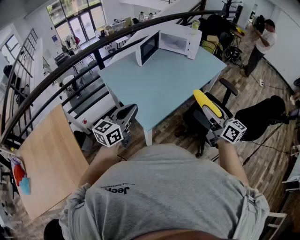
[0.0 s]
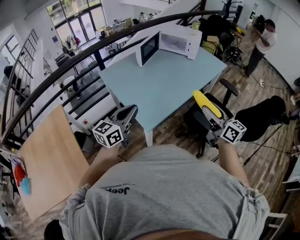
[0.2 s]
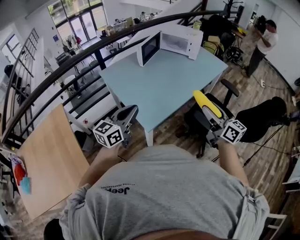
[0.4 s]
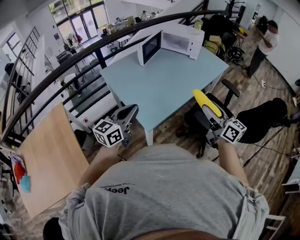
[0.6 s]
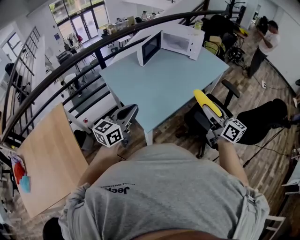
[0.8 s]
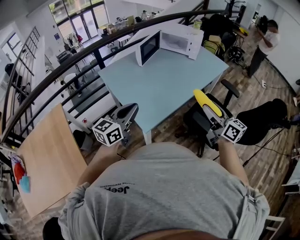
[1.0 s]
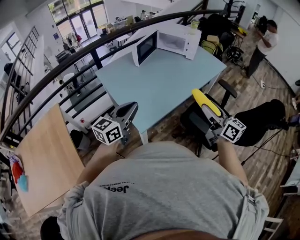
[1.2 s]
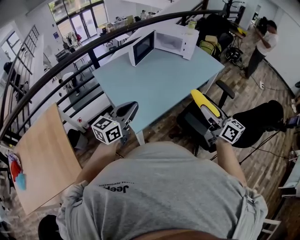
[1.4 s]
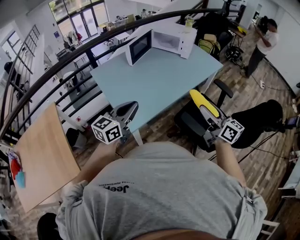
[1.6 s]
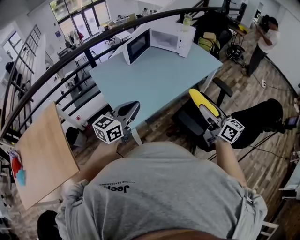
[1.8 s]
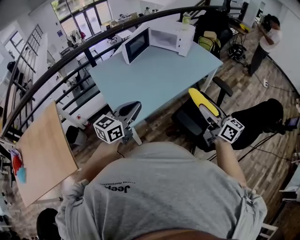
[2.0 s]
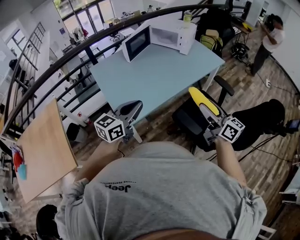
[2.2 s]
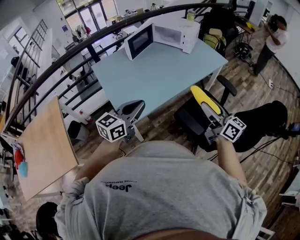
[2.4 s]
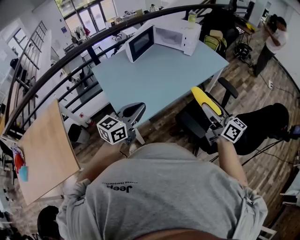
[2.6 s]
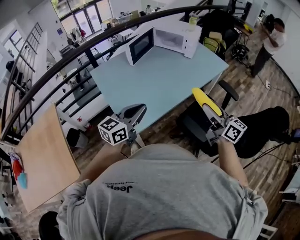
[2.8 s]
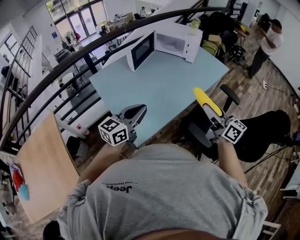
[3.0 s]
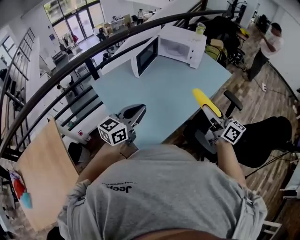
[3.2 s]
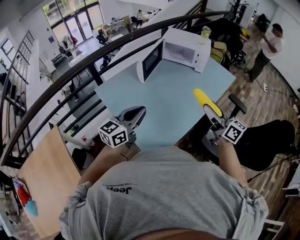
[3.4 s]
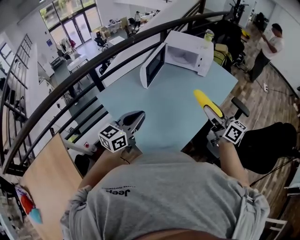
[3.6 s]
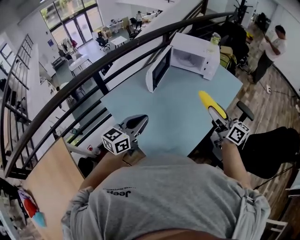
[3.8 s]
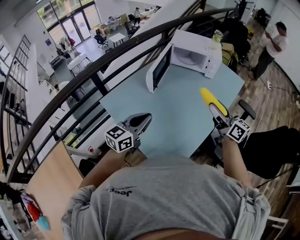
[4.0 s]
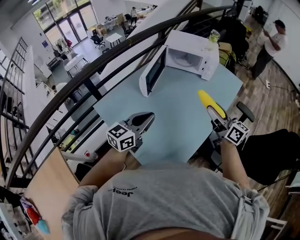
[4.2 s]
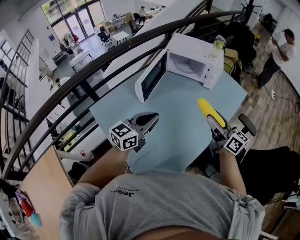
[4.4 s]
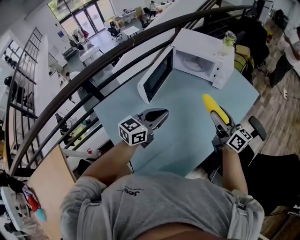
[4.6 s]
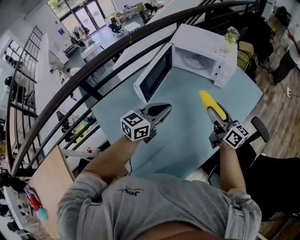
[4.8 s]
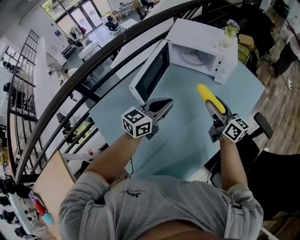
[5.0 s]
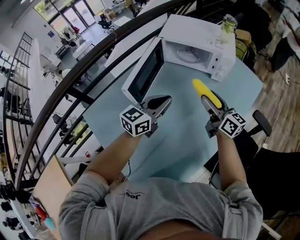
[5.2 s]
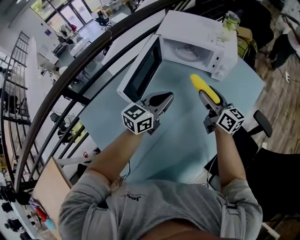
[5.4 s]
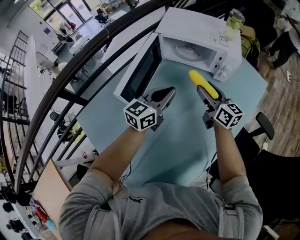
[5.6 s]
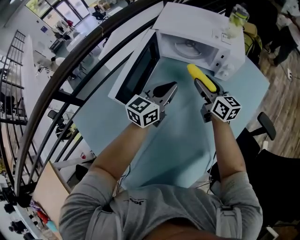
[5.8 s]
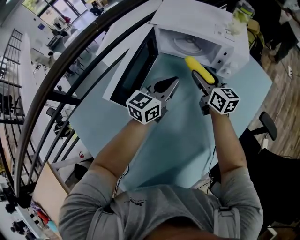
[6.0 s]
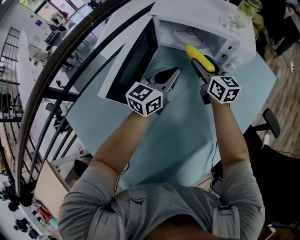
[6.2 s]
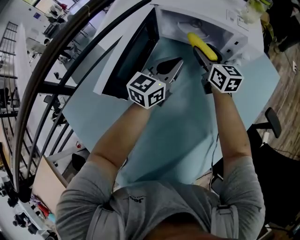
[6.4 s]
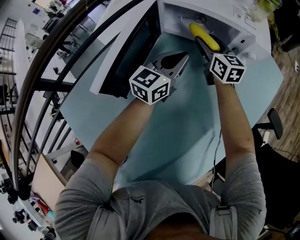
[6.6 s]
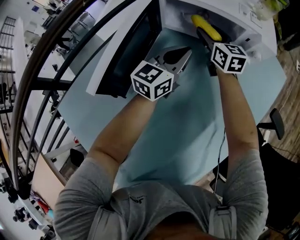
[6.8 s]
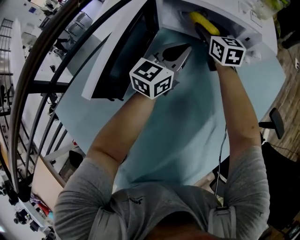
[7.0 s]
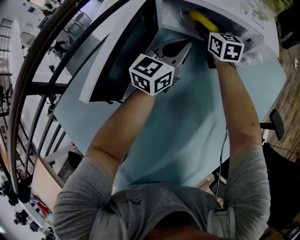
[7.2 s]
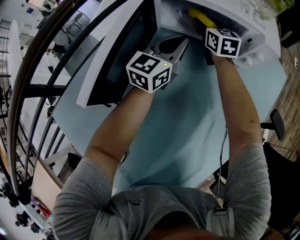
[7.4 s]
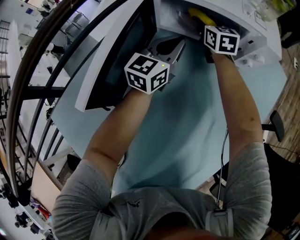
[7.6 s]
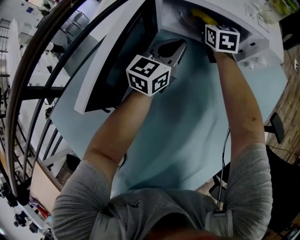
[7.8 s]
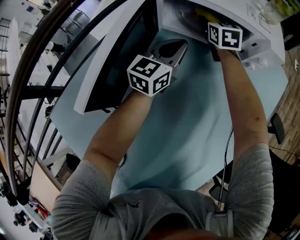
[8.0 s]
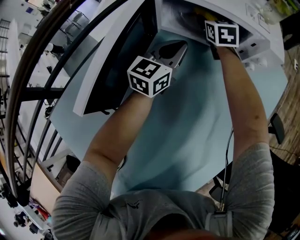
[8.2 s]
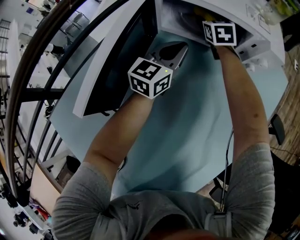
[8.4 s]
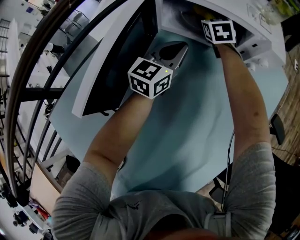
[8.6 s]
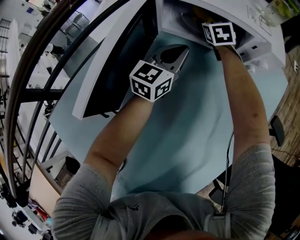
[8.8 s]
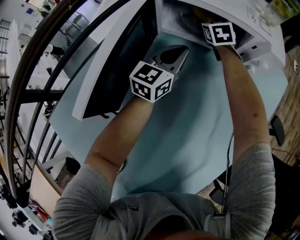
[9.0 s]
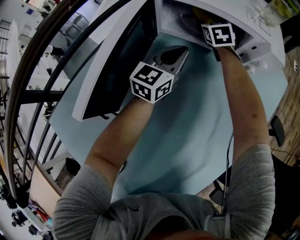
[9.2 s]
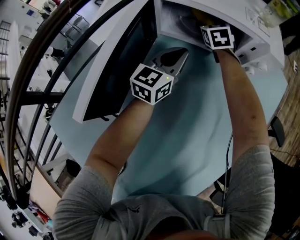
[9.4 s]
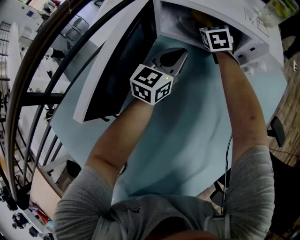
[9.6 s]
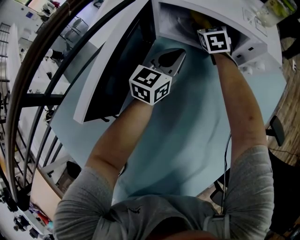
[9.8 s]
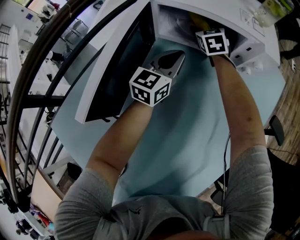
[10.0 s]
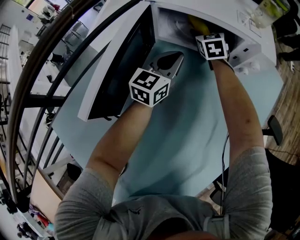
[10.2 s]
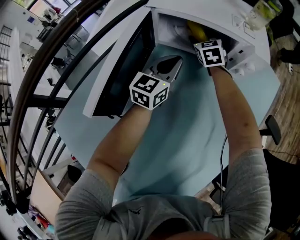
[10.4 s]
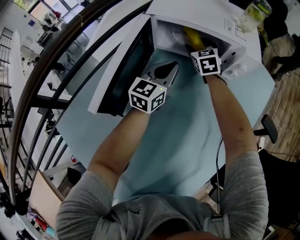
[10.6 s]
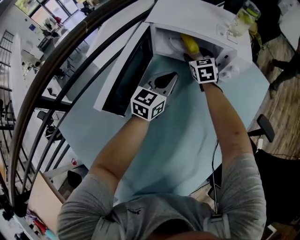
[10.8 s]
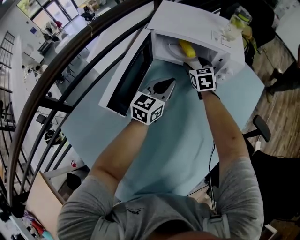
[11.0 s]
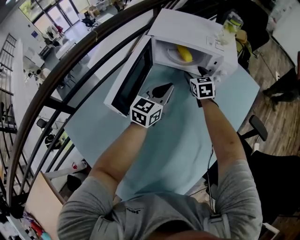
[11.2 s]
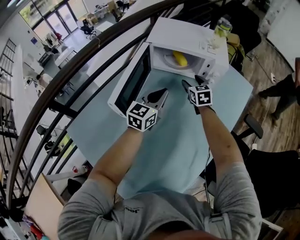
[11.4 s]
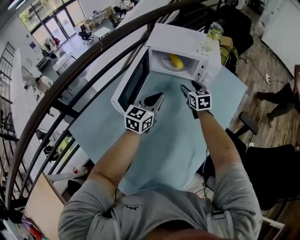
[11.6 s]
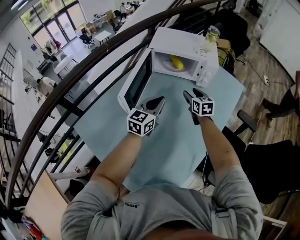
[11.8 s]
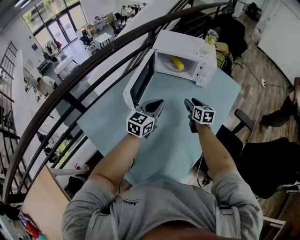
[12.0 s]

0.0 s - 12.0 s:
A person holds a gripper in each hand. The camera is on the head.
0.0 s - 1.6 s: The two grippers go some 10 cm to the right.
1.6 s - 3.0 s: The two grippers go about 10 cm forward. The left gripper travels to the right and back again, approximately 10 cm each way.
3.0 s - 4.4 s: The left gripper heads forward, covering about 25 cm; the right gripper moves forward and to the left, about 25 cm.
4.4 s - 6.0 s: Both grippers travel together forward and downward, about 40 cm.
6.0 s - 7.6 s: The right gripper moves forward, approximately 20 cm, and swivels some 20 degrees. The left gripper goes approximately 15 cm forward and downward.
7.6 s - 9.0 s: The right gripper rotates some 20 degrees.
9.0 s - 10.4 s: There are only small adjustments of the grippers.
10.4 s - 12.0 s: The left gripper travels backward and upward by roughly 30 cm. The right gripper moves backward, approximately 35 cm, and rotates some 30 degrees.

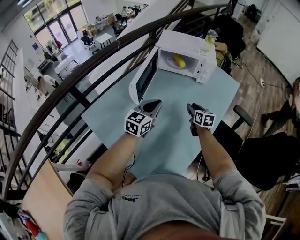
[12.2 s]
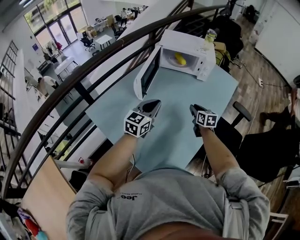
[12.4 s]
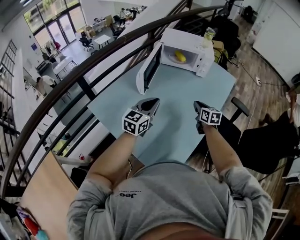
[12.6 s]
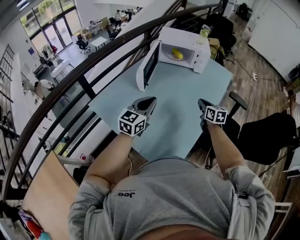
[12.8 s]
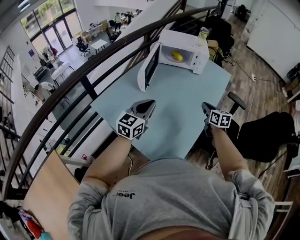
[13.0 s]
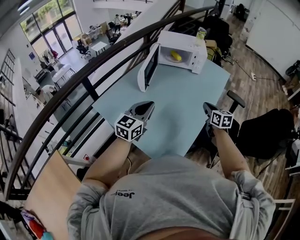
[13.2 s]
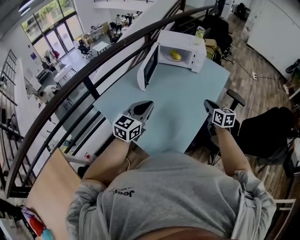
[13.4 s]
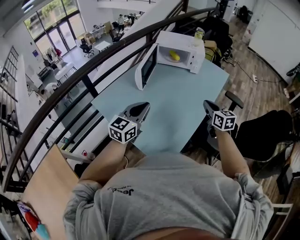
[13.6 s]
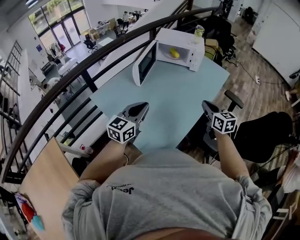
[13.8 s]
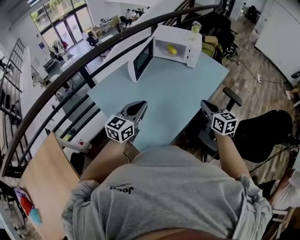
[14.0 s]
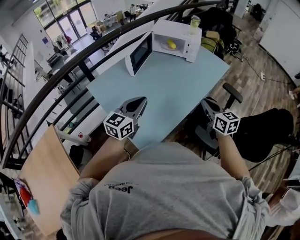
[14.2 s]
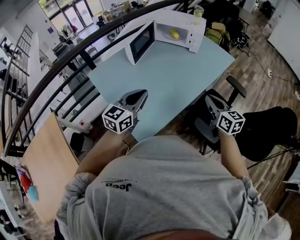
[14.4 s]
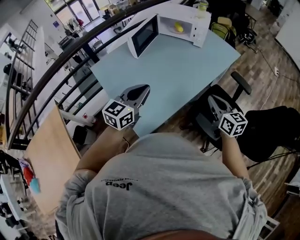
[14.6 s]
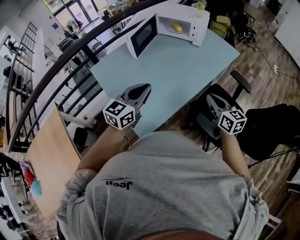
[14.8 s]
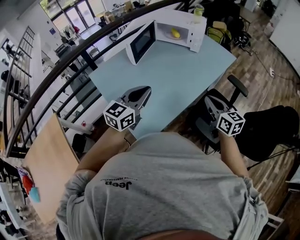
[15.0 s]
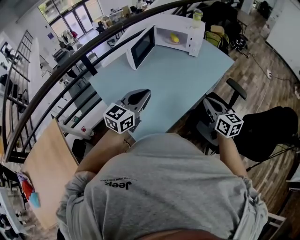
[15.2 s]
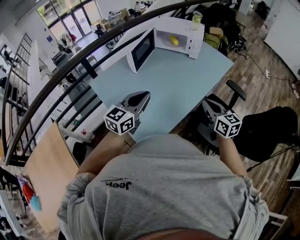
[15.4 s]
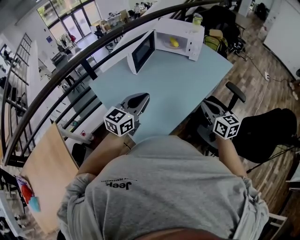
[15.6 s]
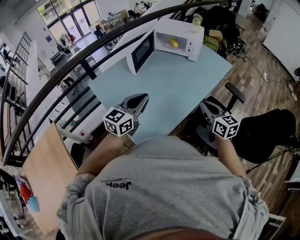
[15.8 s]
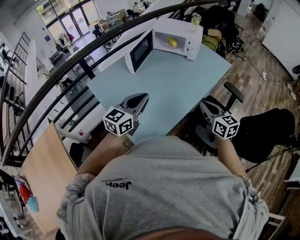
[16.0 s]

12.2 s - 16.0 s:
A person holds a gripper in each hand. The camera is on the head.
12.2 s - 13.4 s: Both grippers travel together backward and upward, some 25 cm. The right gripper closes up.
13.4 s - 14.8 s: The right gripper goes about 15 cm to the right and backward, and rotates about 20 degrees, while the left gripper travels to the right by some 15 cm.
14.8 s - 16.0 s: The right gripper ends up approximately 5 cm from where it was.

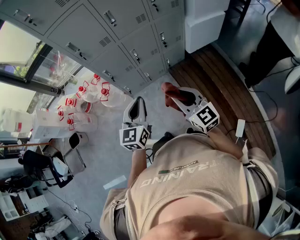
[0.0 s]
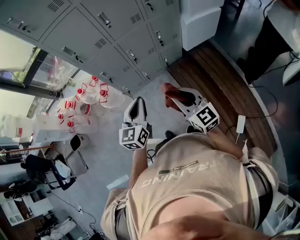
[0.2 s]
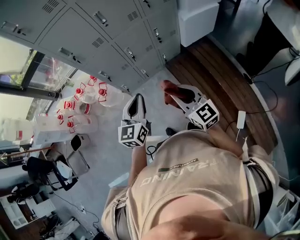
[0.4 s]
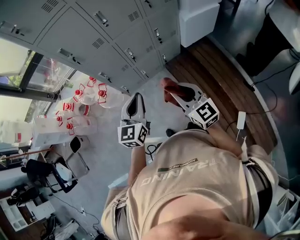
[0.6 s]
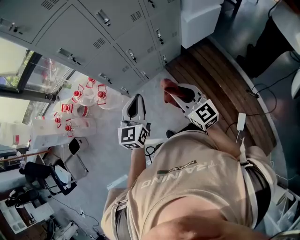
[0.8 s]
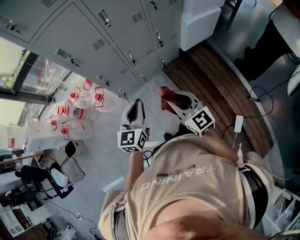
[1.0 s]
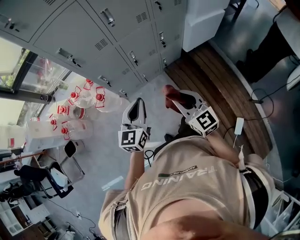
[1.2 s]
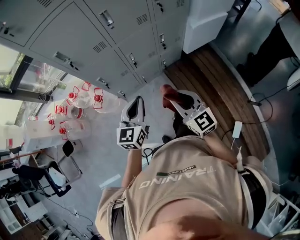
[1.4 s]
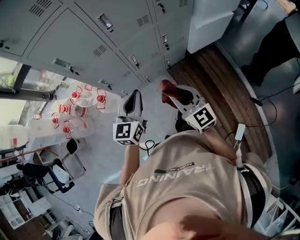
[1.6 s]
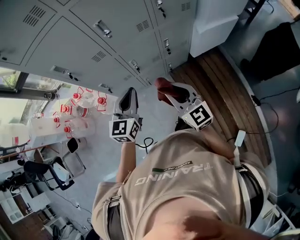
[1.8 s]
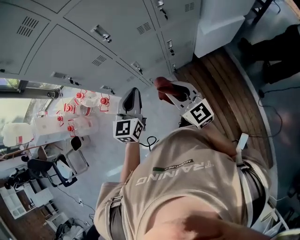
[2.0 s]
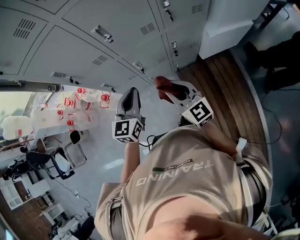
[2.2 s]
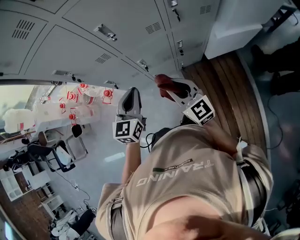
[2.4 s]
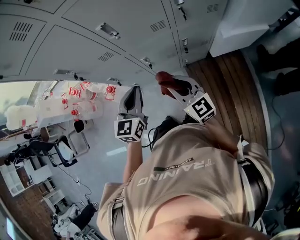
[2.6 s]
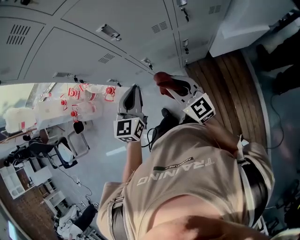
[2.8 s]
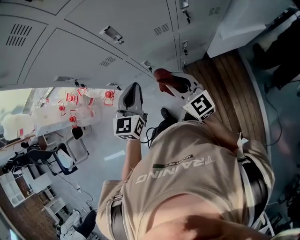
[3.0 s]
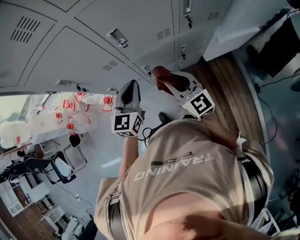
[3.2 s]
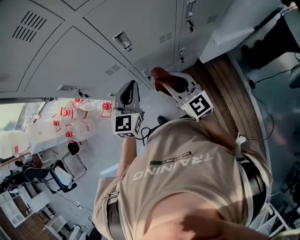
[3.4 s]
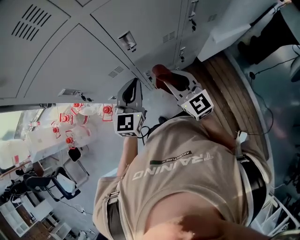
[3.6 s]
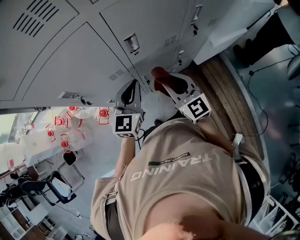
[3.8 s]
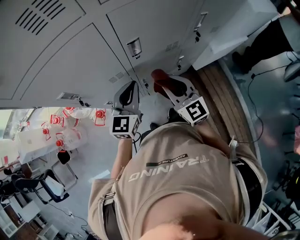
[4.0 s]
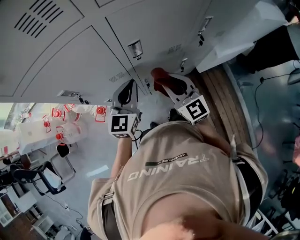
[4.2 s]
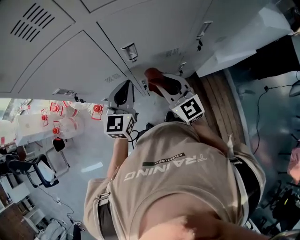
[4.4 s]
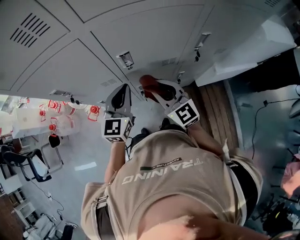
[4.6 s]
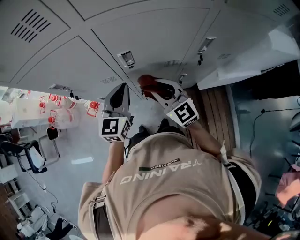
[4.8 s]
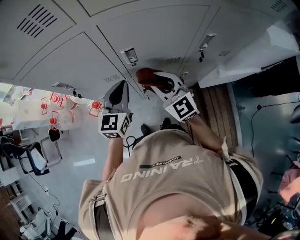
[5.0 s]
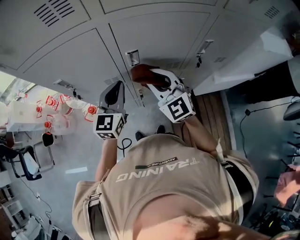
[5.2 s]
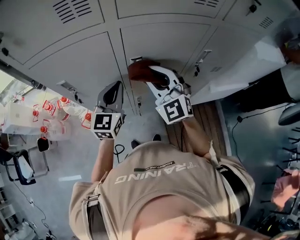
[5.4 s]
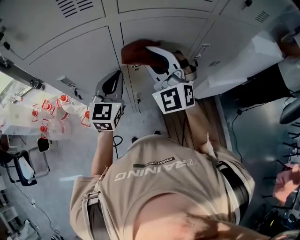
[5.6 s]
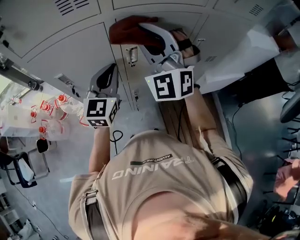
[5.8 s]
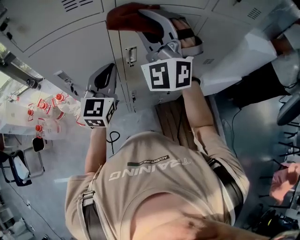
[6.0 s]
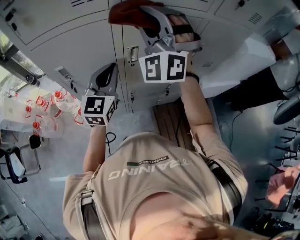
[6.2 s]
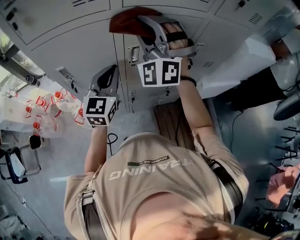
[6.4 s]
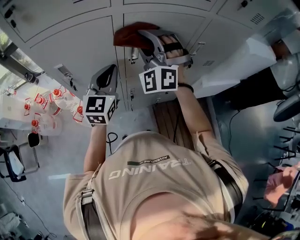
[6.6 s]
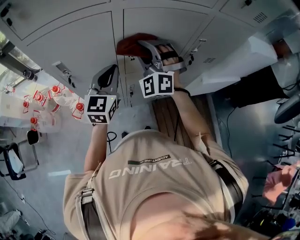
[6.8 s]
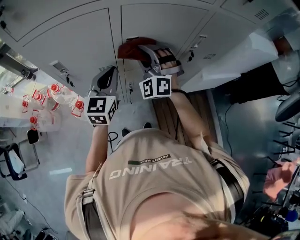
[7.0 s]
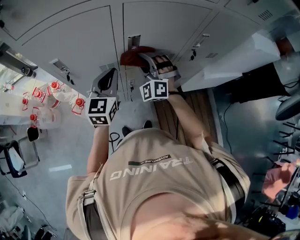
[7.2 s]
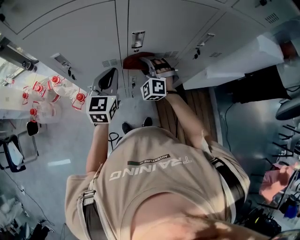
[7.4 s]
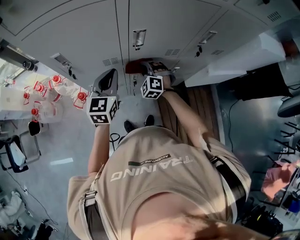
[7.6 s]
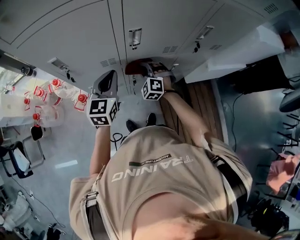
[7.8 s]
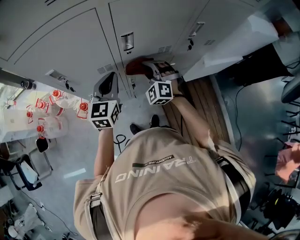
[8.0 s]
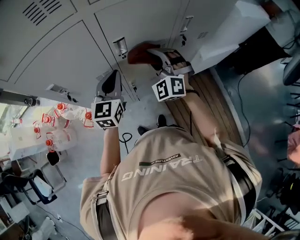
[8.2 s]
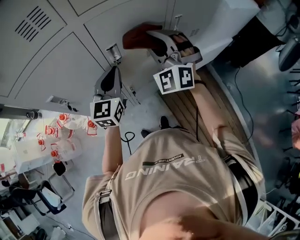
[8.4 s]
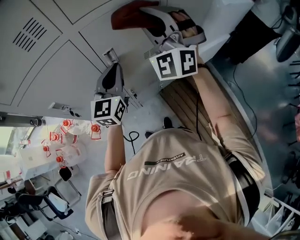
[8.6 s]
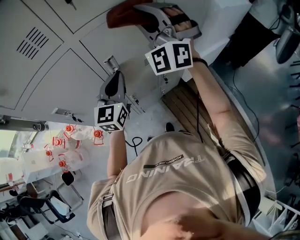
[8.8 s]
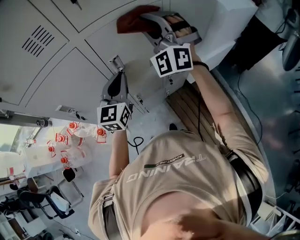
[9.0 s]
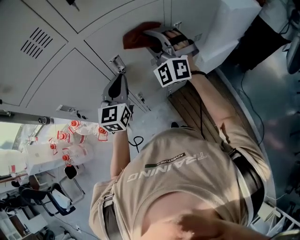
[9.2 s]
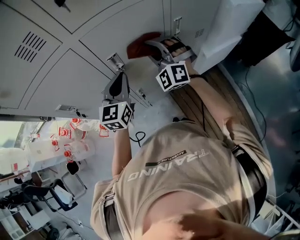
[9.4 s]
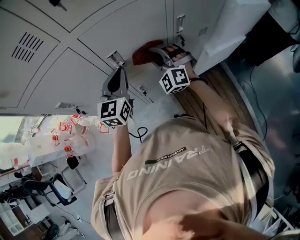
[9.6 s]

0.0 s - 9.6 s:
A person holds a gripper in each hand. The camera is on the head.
0.0 s - 1.6 s: Both grippers travel together forward, roughly 20 cm.
1.6 s - 3.2 s: The grippers both shift forward by roughly 20 cm.
3.2 s - 4.8 s: The grippers both shift forward by some 10 cm.
4.8 s - 6.4 s: The left gripper goes some 10 cm upward; the right gripper heads upward, covering roughly 25 cm, and twists some 70 degrees counterclockwise, seen from behind.
6.4 s - 8.0 s: The right gripper travels downward by roughly 35 cm, and points its fingers some 30 degrees further downward, while the left gripper moves downward, approximately 10 cm.
8.0 s - 9.6 s: The right gripper heads to the right and forward, covering approximately 10 cm, and moves about 35 cm upward and comes back; the left gripper is displaced to the right, forward and upward by some 10 cm.
